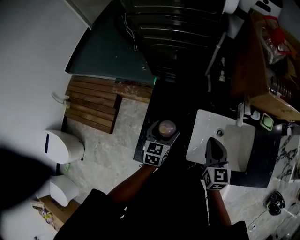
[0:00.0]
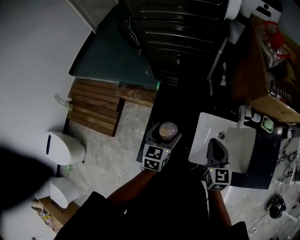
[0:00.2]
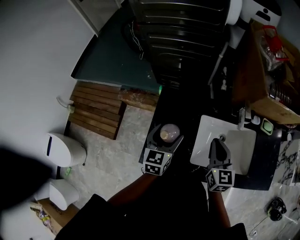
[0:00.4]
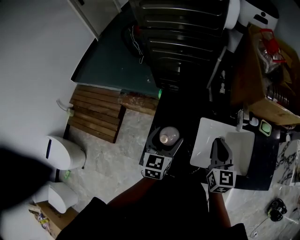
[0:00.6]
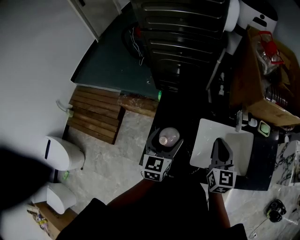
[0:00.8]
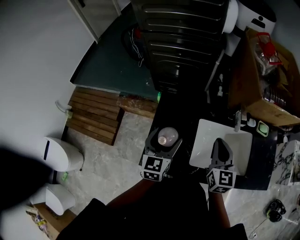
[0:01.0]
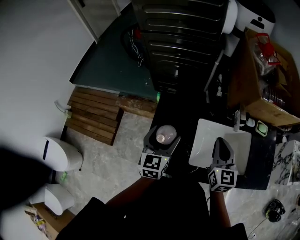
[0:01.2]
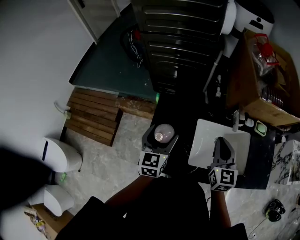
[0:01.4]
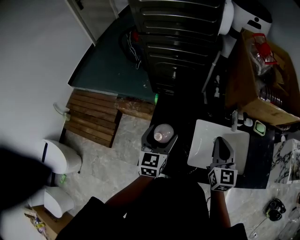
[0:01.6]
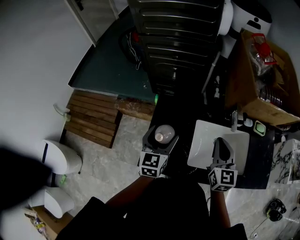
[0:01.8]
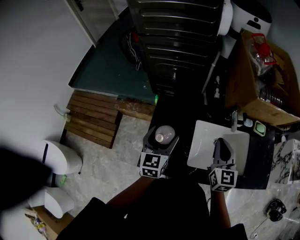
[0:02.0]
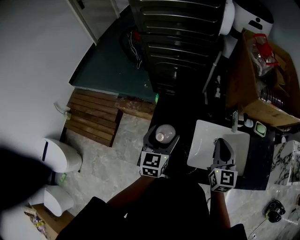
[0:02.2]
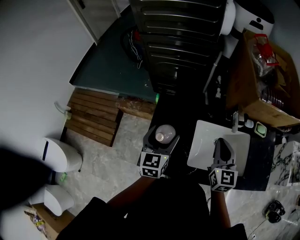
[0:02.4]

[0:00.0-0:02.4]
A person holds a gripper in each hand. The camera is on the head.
0:00.0 to 0:01.2: The right gripper goes about 10 cm upward; the left gripper shifts some 15 cm upward.
0:01.2 to 0:02.4: Neither gripper changes place.

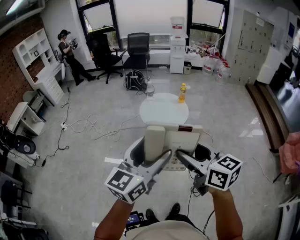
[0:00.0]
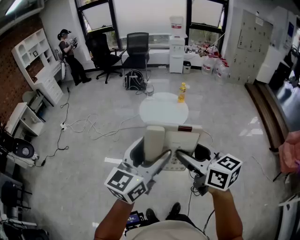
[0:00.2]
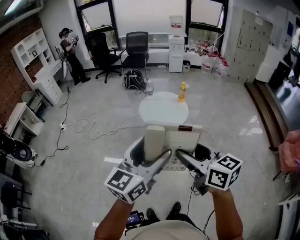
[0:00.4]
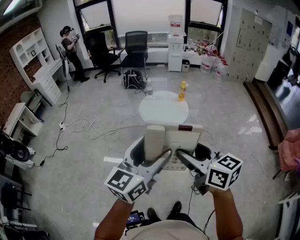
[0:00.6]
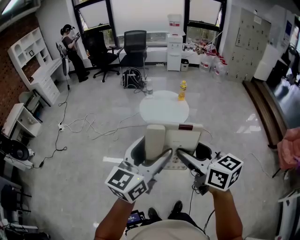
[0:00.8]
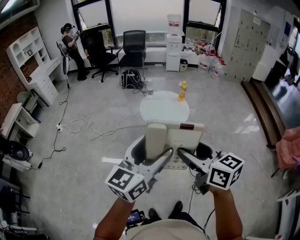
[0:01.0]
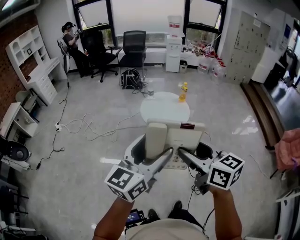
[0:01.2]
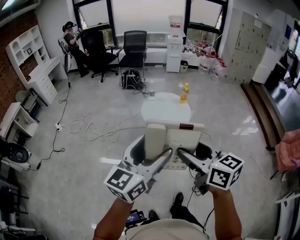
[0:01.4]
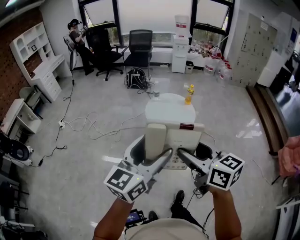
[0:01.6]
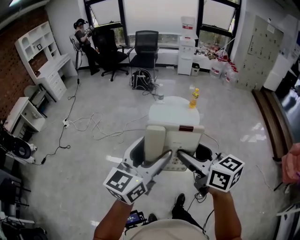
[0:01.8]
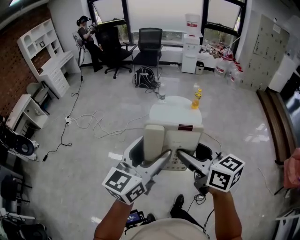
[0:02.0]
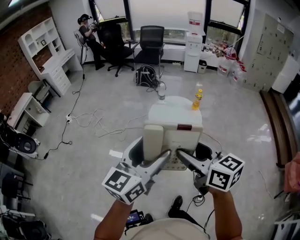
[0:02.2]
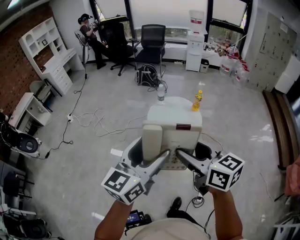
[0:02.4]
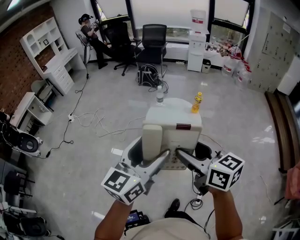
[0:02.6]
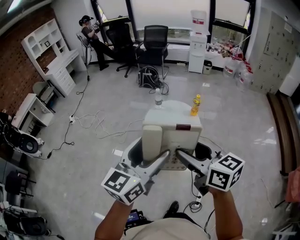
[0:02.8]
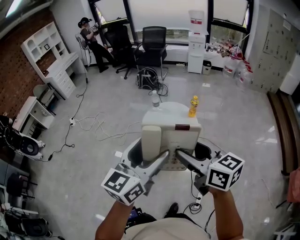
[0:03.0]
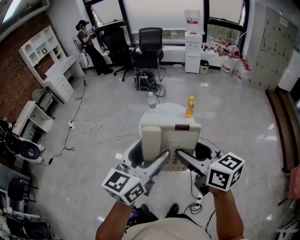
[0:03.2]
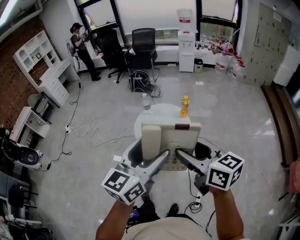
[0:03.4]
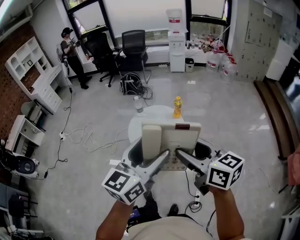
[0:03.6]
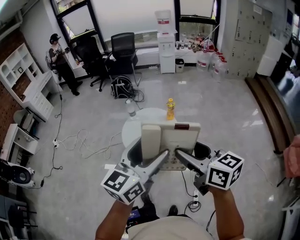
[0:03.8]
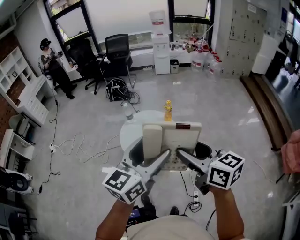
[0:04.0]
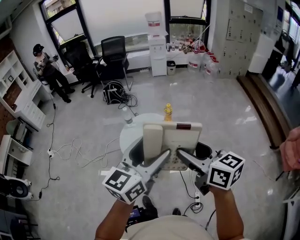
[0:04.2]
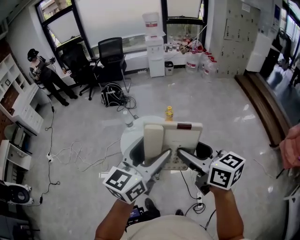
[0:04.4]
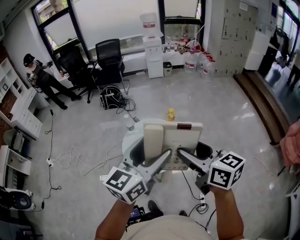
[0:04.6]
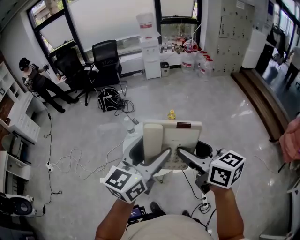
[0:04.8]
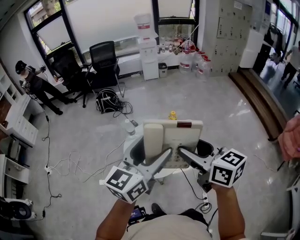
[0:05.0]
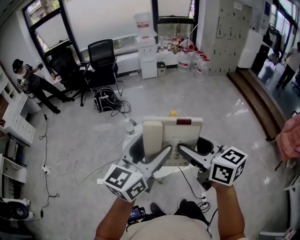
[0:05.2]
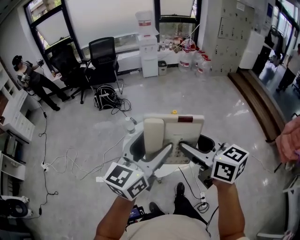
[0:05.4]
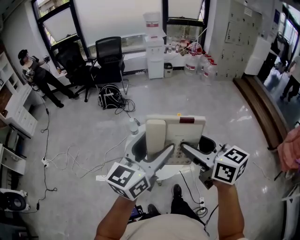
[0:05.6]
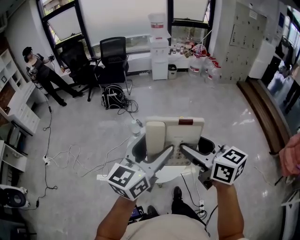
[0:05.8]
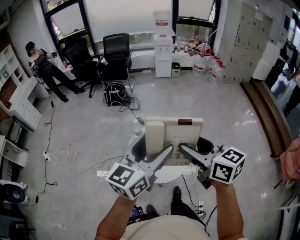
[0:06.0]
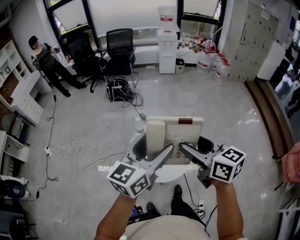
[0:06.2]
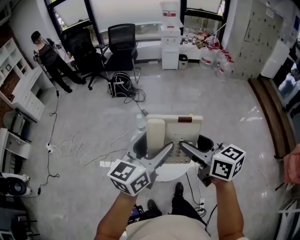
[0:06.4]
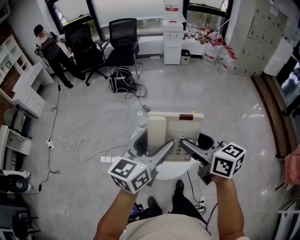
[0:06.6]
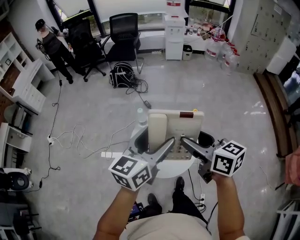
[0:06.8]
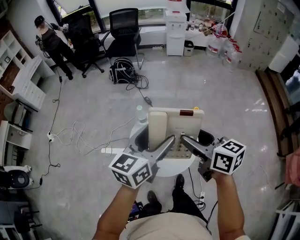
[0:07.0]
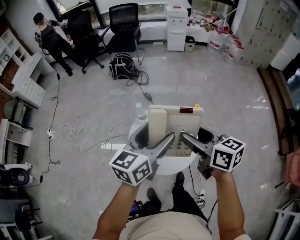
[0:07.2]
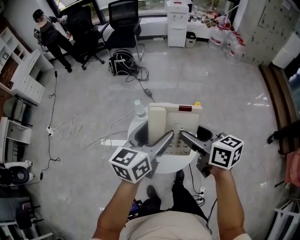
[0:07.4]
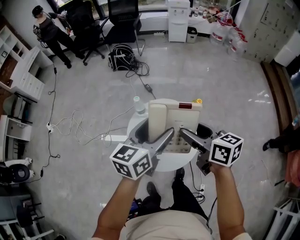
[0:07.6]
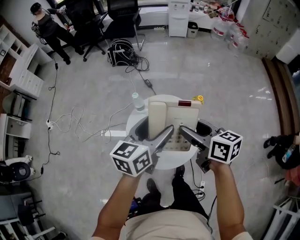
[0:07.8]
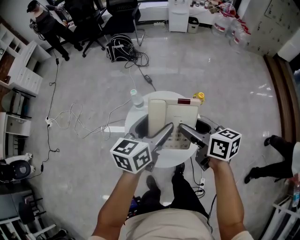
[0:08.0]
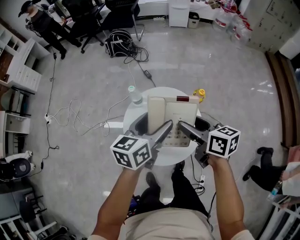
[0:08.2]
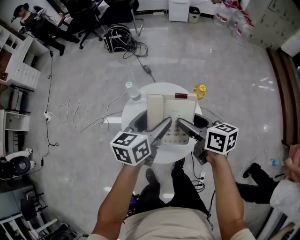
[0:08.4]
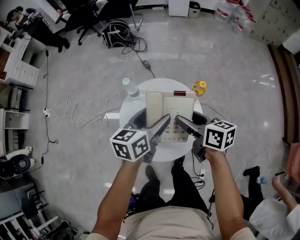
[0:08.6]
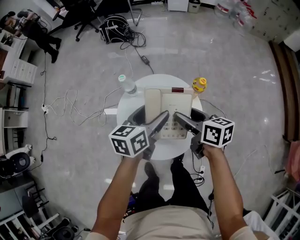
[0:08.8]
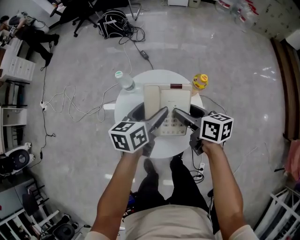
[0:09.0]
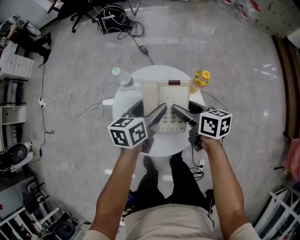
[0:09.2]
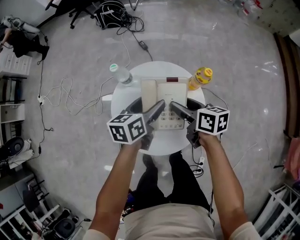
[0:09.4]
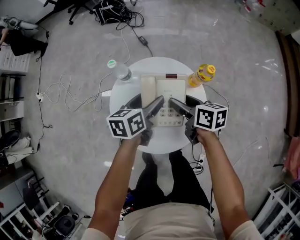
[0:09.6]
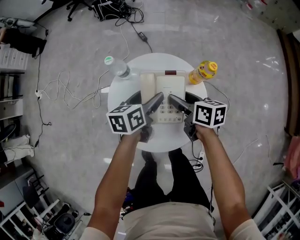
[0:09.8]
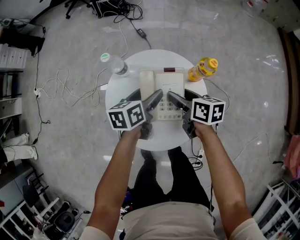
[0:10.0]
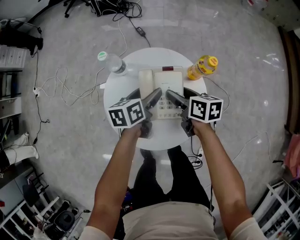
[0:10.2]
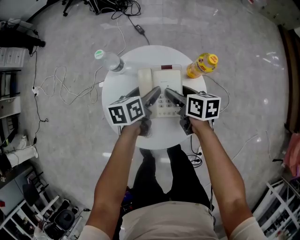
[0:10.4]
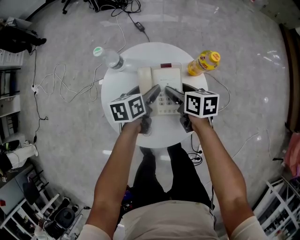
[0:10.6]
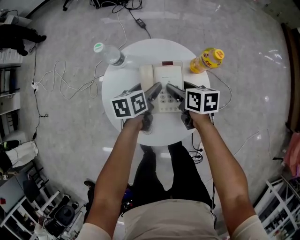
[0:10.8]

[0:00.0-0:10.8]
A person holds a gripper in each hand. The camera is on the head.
0:00.0 to 0:01.6: The two grippers go approximately 10 cm to the left and forward.
0:01.6 to 0:03.0: Both grippers travel together to the right and forward, about 25 cm.
0:03.0 to 0:04.6: Both grippers move forward, roughly 15 cm. The left gripper changes its angle by about 20 degrees. The right gripper rotates approximately 20 degrees.
0:04.6 to 0:06.2: The grippers both shift forward and to the left by roughly 15 cm.
0:06.2 to 0:07.8: Both grippers travel together downward and forward, about 20 cm.
0:07.8 to 0:09.2: The grippers both shift downward by approximately 20 cm.
0:09.2 to 0:10.8: The two grippers go approximately 15 cm downward.

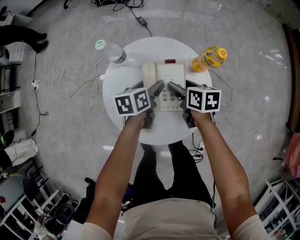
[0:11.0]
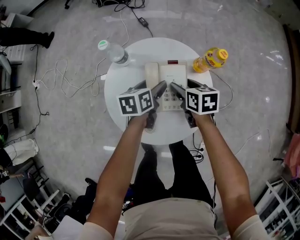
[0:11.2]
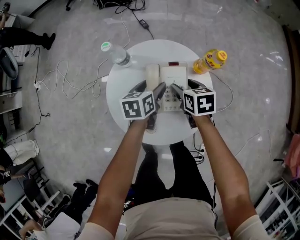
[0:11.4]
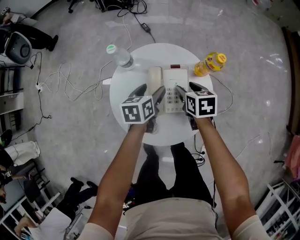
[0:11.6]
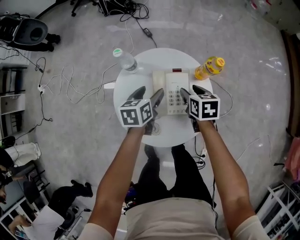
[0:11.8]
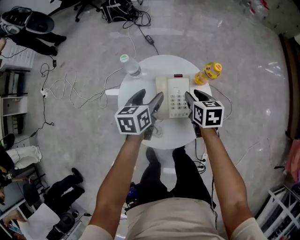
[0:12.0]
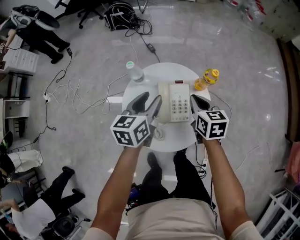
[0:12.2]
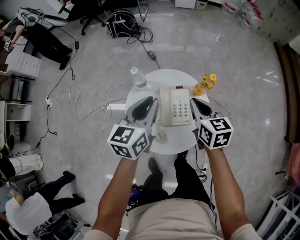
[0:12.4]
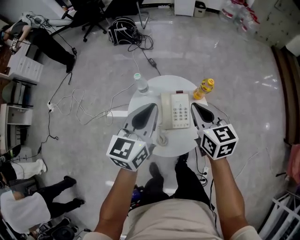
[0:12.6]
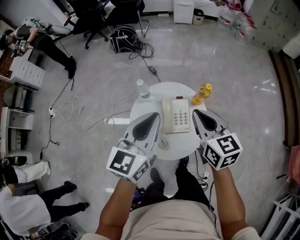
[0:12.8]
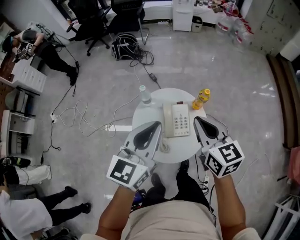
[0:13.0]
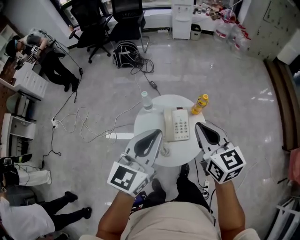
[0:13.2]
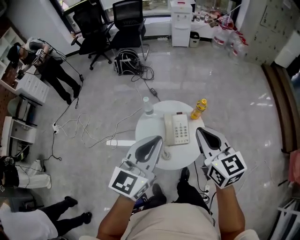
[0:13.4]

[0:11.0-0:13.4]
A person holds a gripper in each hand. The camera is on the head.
0:11.0 to 0:12.2: Both grippers travel together upward, roughly 20 cm. The left gripper rotates approximately 30 degrees. Meanwhile the right gripper changes its angle by about 20 degrees, and closes its fingers.
0:12.2 to 0:13.4: Both grippers move upward and backward, about 35 cm. The left gripper turns by about 30 degrees, and closes its fingers; the right gripper swivels some 30 degrees.

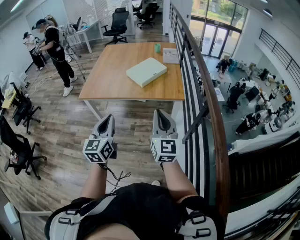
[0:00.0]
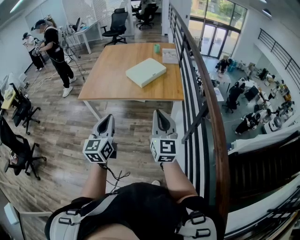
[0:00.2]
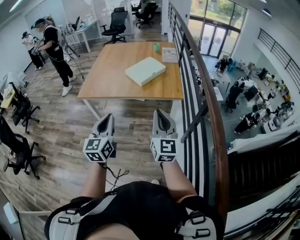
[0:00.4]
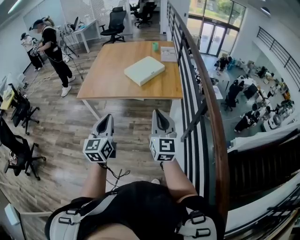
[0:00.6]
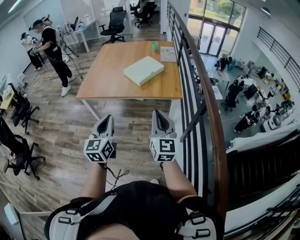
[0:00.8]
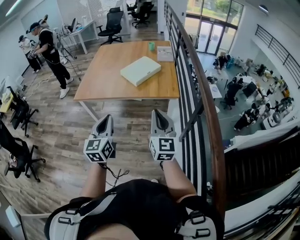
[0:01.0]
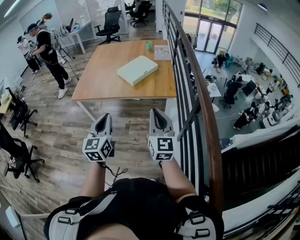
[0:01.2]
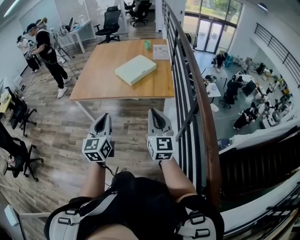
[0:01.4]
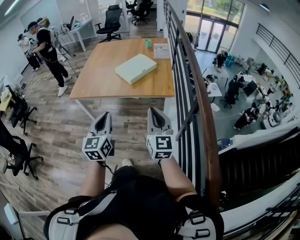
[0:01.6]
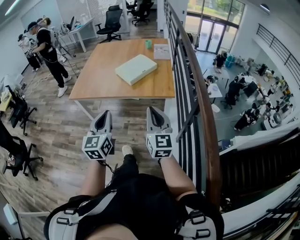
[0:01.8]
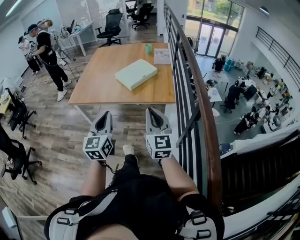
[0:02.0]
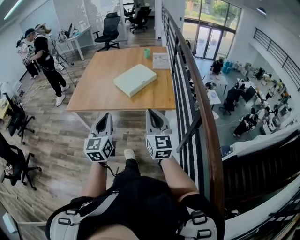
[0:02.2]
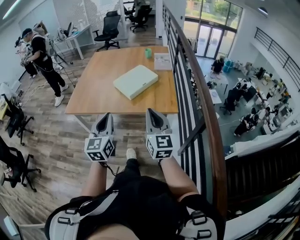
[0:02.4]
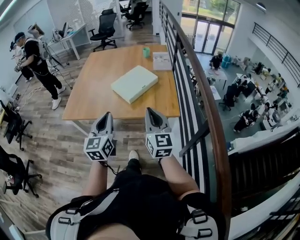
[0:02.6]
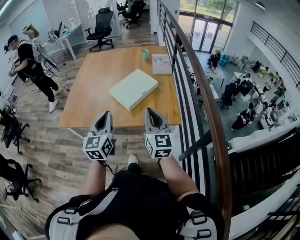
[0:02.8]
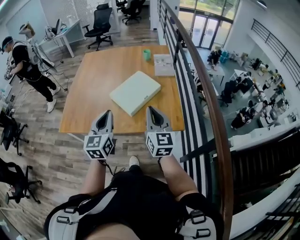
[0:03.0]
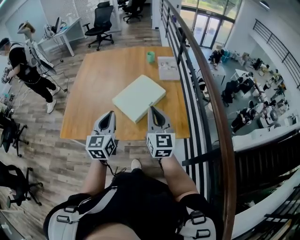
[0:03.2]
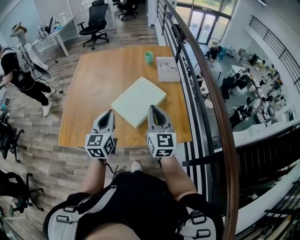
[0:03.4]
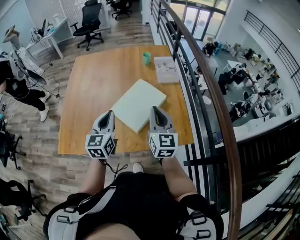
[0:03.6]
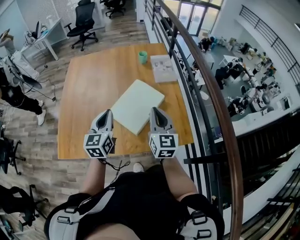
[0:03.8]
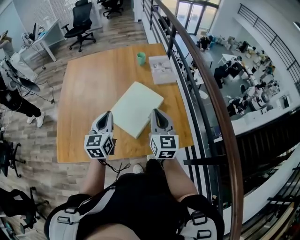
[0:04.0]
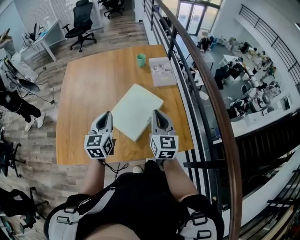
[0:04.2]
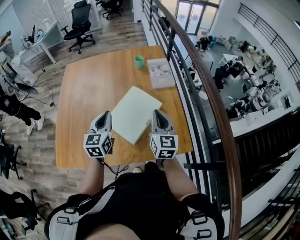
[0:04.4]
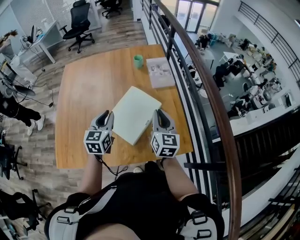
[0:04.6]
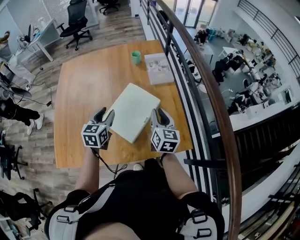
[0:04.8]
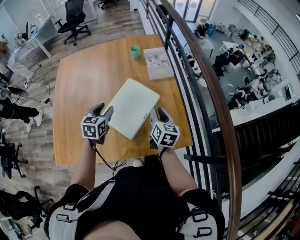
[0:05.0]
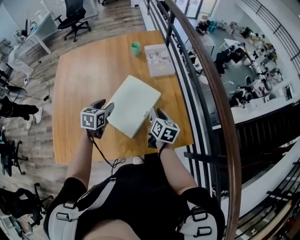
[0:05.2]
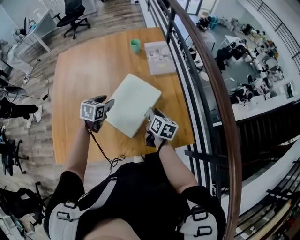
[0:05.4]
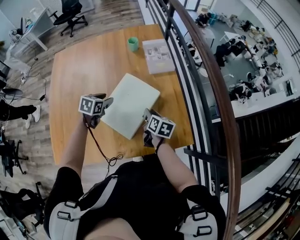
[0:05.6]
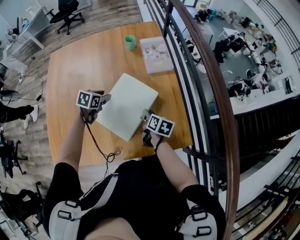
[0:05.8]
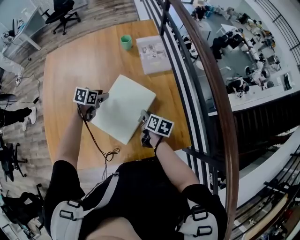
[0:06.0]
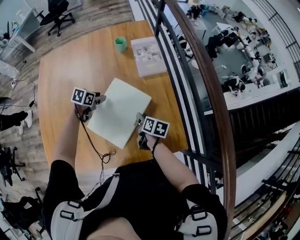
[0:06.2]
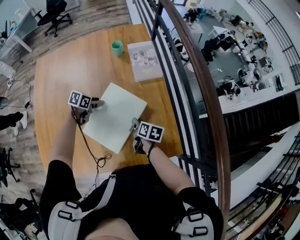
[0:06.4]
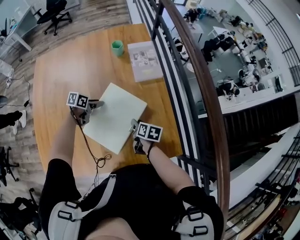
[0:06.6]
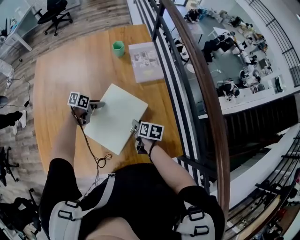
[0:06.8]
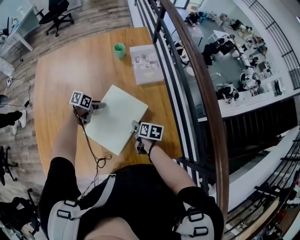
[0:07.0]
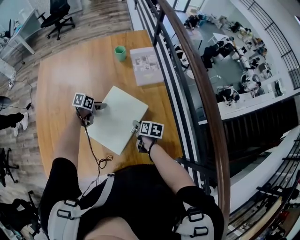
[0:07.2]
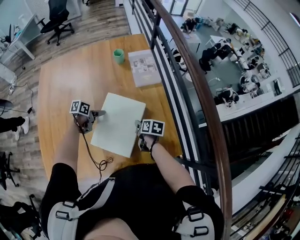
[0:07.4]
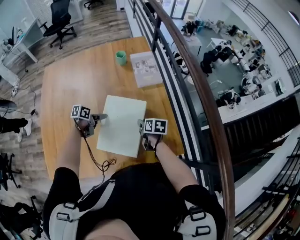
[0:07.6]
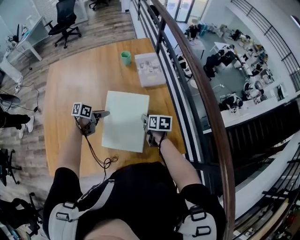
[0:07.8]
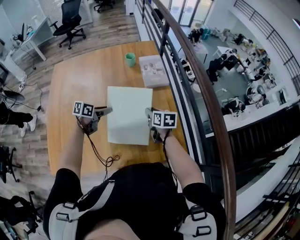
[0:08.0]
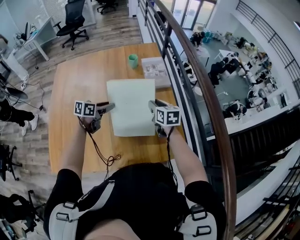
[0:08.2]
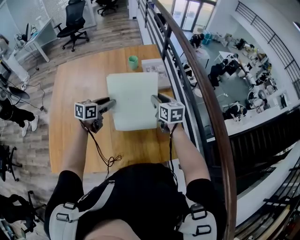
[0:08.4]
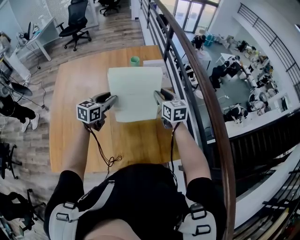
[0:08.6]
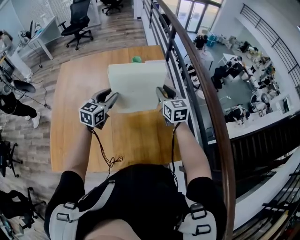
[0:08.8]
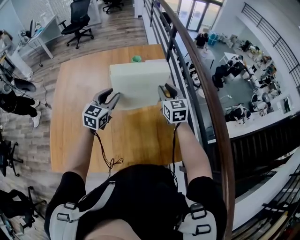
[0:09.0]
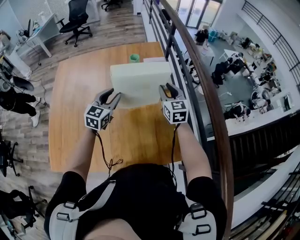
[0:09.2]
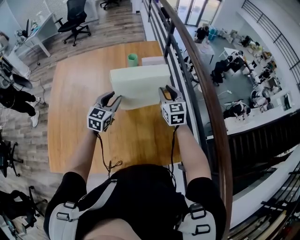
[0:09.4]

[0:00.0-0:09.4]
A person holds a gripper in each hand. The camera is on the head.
0:00.0 to 0:01.6: The grippers both shift to the right by about 5 cm.
0:01.6 to 0:03.2: The grippers both shift forward by about 40 cm.
0:03.2 to 0:04.8: Both grippers travel together forward and downward, roughly 20 cm. The right gripper rotates some 30 degrees. The left gripper changes its angle by some 20 degrees, and opens up.
0:04.8 to 0:06.2: The right gripper heads downward, covering some 20 cm, and changes its angle by some 40 degrees. Meanwhile the left gripper moves downward and forward, about 25 cm, and swivels approximately 40 degrees.
0:06.2 to 0:07.8: The left gripper shifts about 10 cm backward, and rotates some 30 degrees.
0:07.8 to 0:09.4: Both grippers travel together upward and forward, about 20 cm. The right gripper turns by some 50 degrees. Meanwhile the left gripper turns by roughly 60 degrees.
